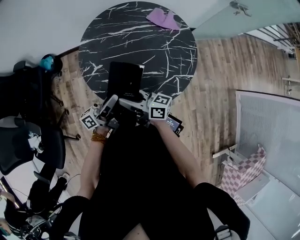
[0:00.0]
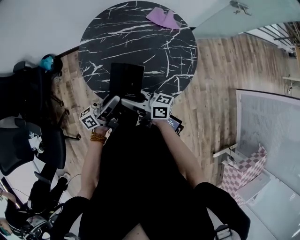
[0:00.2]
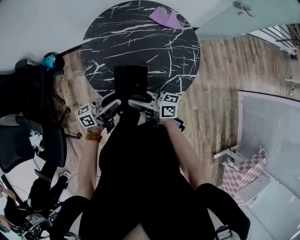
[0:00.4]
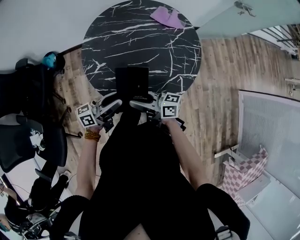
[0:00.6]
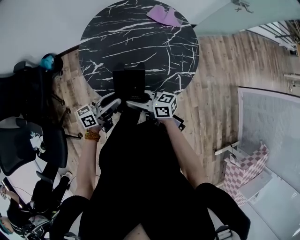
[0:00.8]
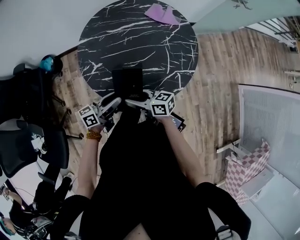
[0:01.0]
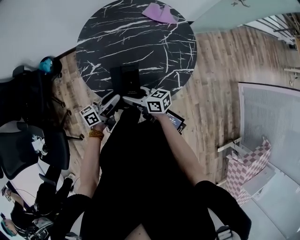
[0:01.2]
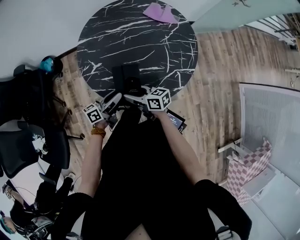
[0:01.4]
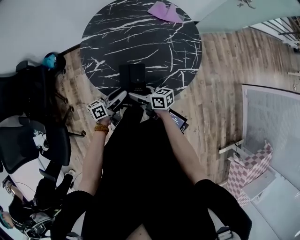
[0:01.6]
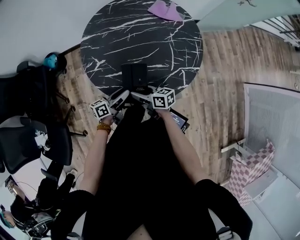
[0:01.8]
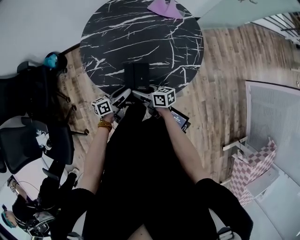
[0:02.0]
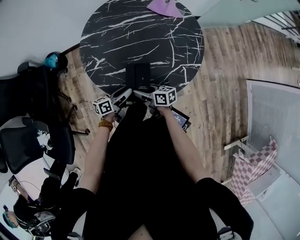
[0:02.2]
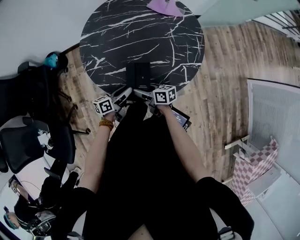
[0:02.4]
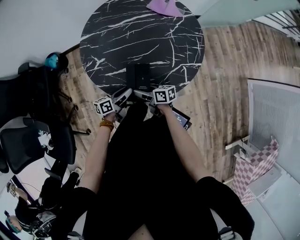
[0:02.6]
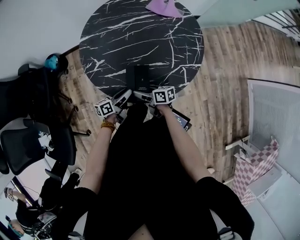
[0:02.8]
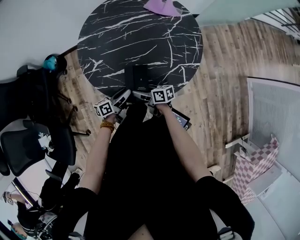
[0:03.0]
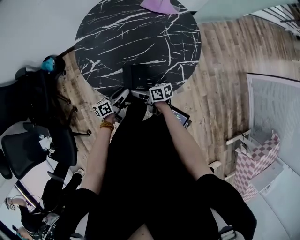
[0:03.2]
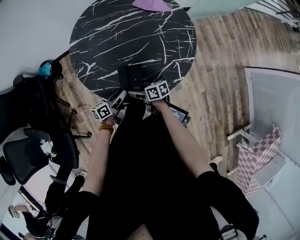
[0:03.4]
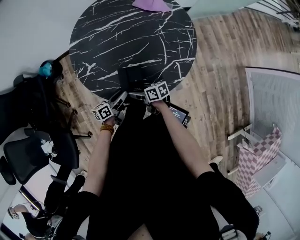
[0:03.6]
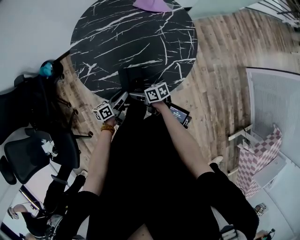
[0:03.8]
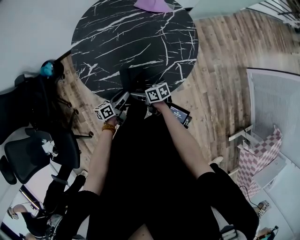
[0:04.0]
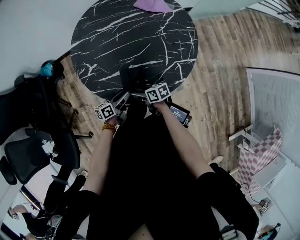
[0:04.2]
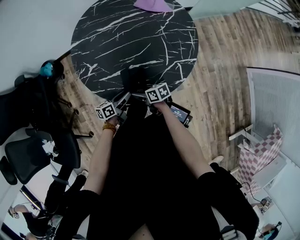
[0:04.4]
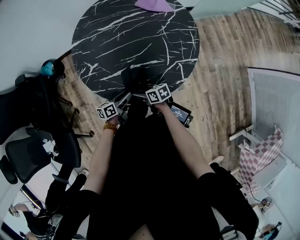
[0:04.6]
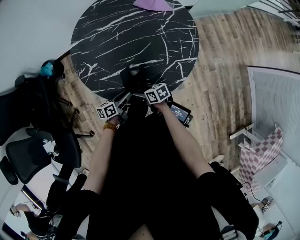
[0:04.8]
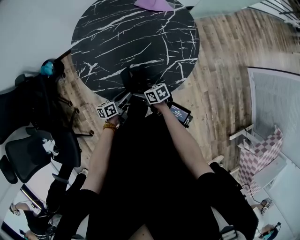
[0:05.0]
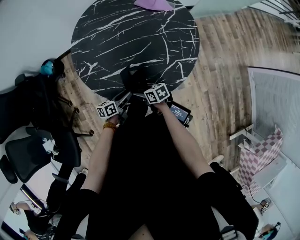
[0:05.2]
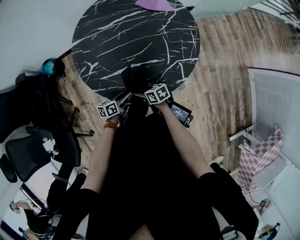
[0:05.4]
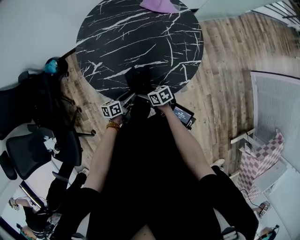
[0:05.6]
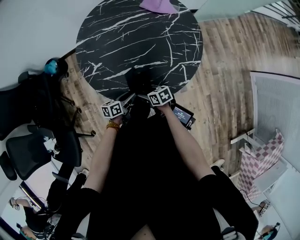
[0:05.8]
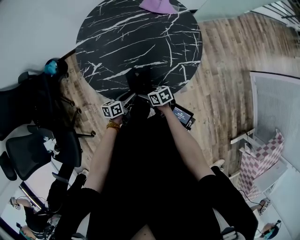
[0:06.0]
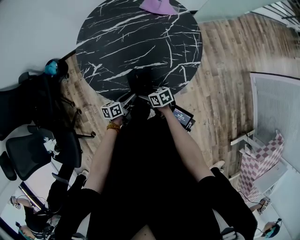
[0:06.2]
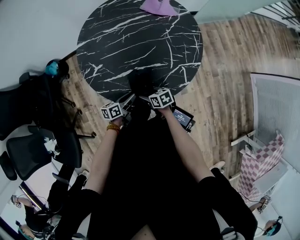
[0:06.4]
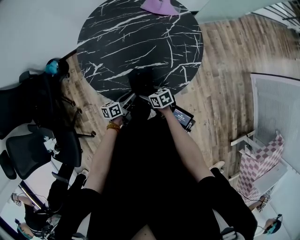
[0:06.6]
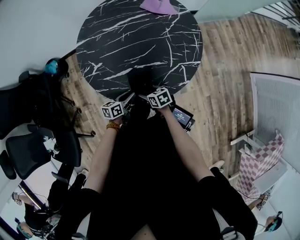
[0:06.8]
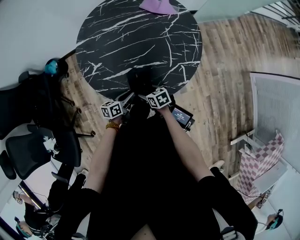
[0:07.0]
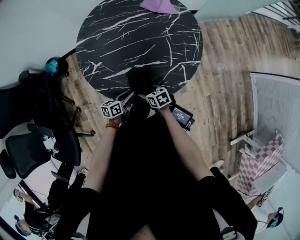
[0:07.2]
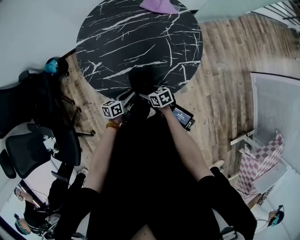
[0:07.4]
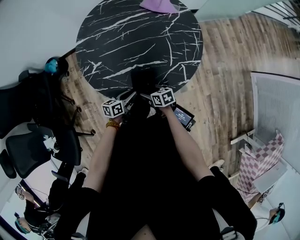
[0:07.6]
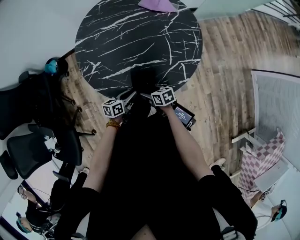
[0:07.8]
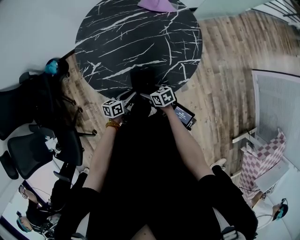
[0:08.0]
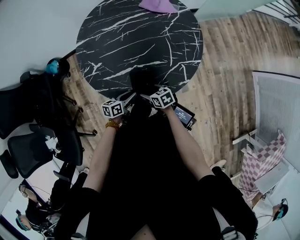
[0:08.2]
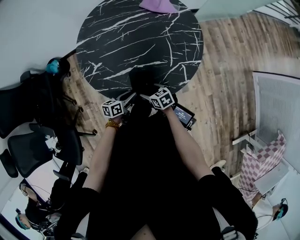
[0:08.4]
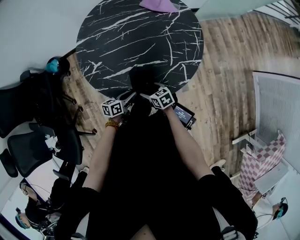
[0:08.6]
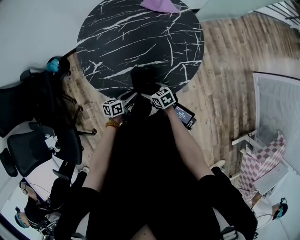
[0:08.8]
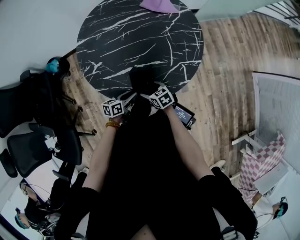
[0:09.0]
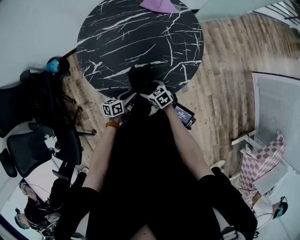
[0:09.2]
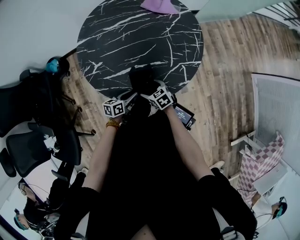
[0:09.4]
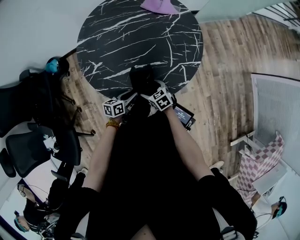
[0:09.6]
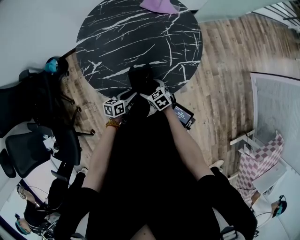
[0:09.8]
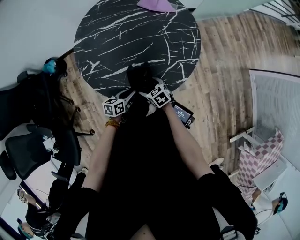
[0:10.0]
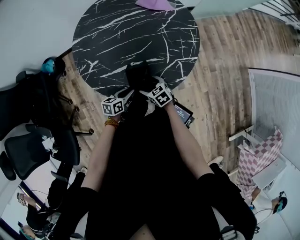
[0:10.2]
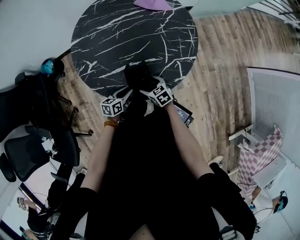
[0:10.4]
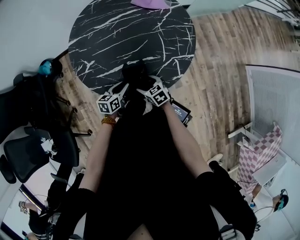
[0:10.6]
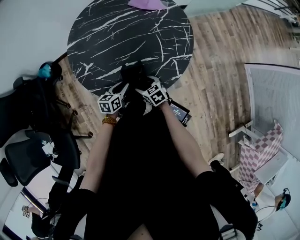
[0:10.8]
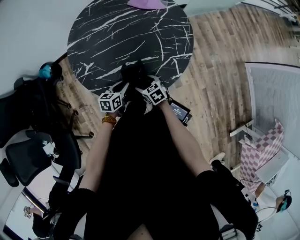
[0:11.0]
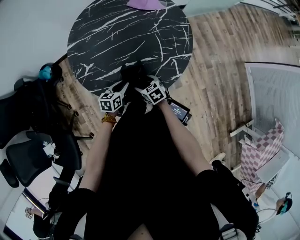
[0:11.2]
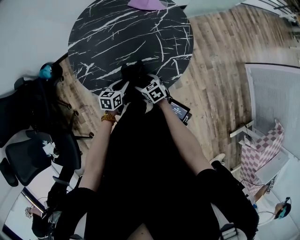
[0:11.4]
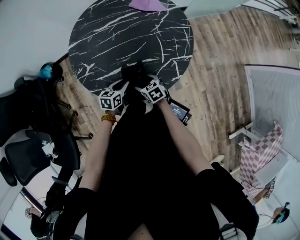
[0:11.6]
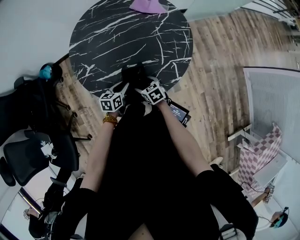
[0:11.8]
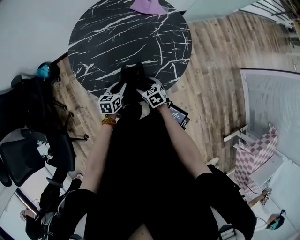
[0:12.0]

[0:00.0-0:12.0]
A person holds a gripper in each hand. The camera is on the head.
0:00.0 to 0:01.6: The grippers both shift downward by about 15 cm. The left gripper changes its angle by roughly 30 degrees.
0:01.6 to 0:03.0: Both grippers move downward, roughly 5 cm.
0:03.0 to 0:04.4: There are only small adjustments of the grippers.
0:04.4 to 0:06.0: The grippers move only a little.
0:06.0 to 0:09.0: The grippers stay close to where they were, moving slightly.
0:09.0 to 0:10.4: The grippers stay close to where they were, moving slightly.
0:10.4 to 0:12.0: The left gripper ends up some 5 cm from where it was.

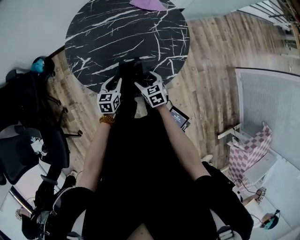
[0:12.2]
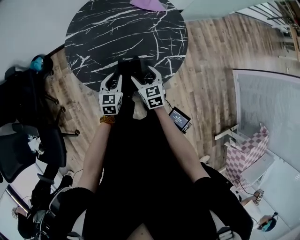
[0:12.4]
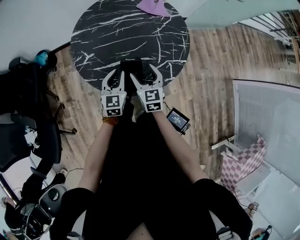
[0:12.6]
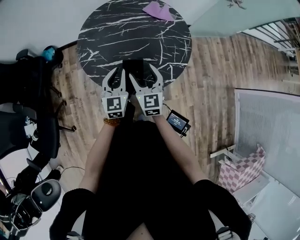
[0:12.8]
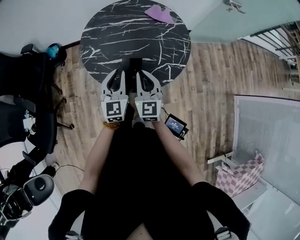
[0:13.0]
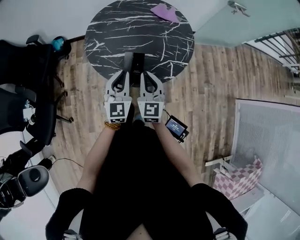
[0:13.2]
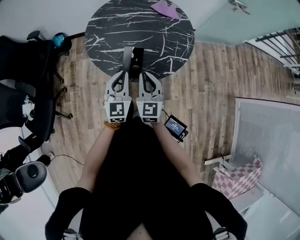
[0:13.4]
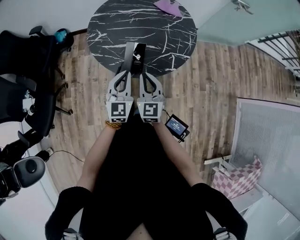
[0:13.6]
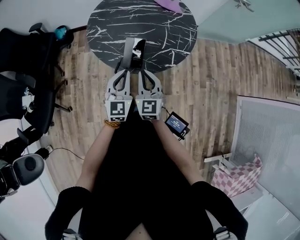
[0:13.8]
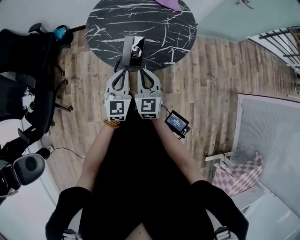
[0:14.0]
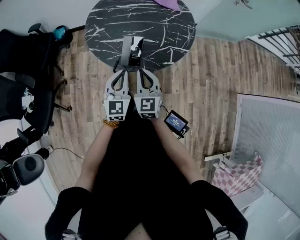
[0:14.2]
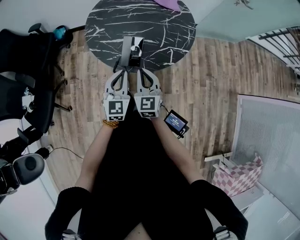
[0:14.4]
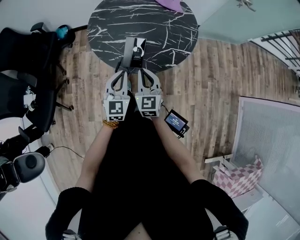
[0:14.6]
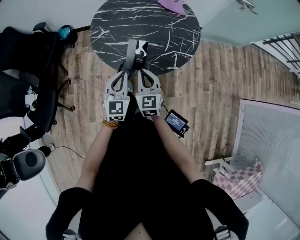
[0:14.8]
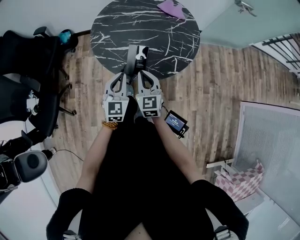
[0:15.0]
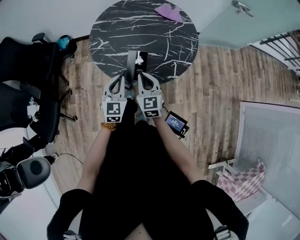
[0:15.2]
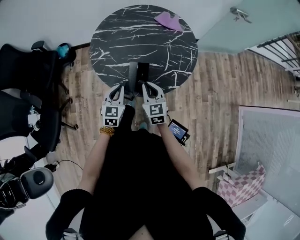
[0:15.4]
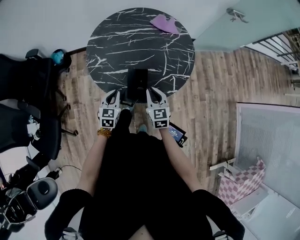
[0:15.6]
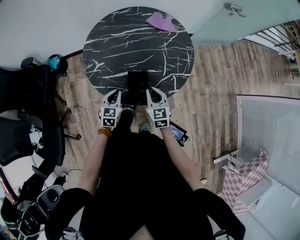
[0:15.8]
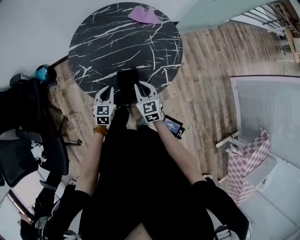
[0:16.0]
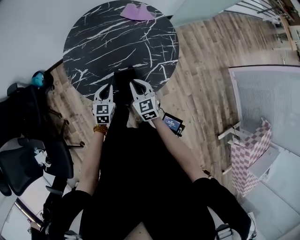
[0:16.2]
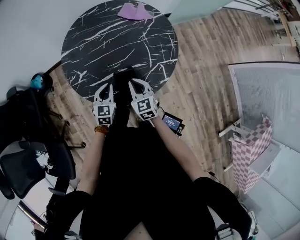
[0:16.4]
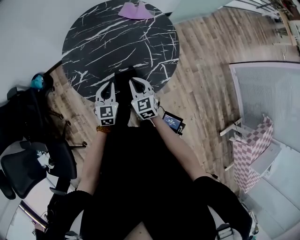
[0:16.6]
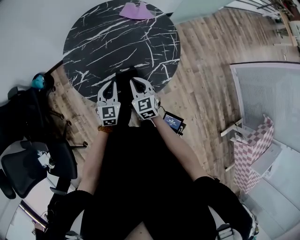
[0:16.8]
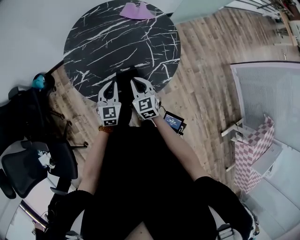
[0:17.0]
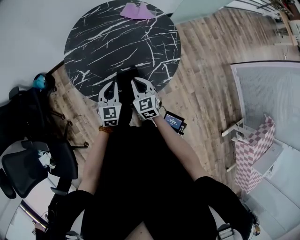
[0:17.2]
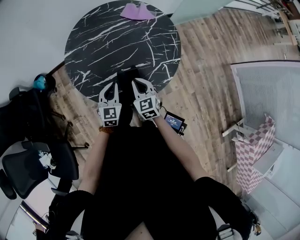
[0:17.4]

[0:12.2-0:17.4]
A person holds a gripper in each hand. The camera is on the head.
0:12.2 to 0:14.0: The two grippers go roughly 25 cm upward and backward. The right gripper tips its fingers upward by some 30 degrees, and closes up, while the left gripper rotates about 40 degrees, and closes.
0:14.0 to 0:15.6: The right gripper shifts some 10 cm forward and downward. The left gripper travels forward, downward and to the left by roughly 20 cm, and turns by roughly 20 degrees.
0:15.6 to 0:17.4: The left gripper shifts some 10 cm forward; the right gripper shifts about 5 cm forward.

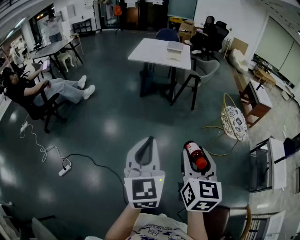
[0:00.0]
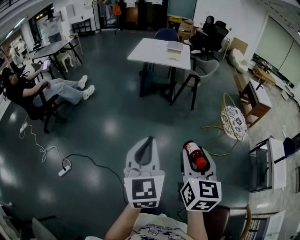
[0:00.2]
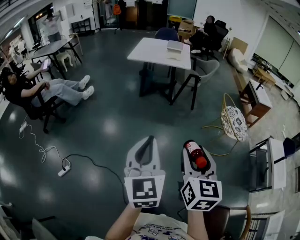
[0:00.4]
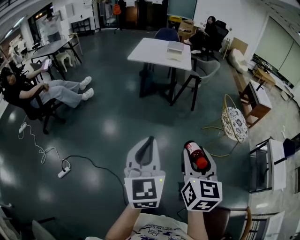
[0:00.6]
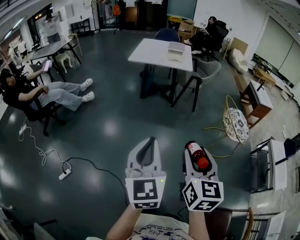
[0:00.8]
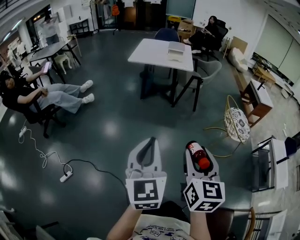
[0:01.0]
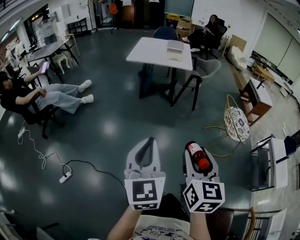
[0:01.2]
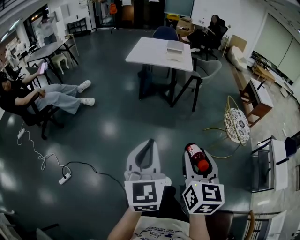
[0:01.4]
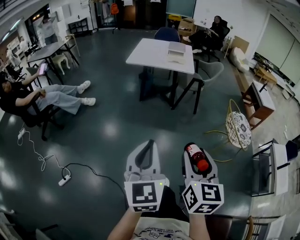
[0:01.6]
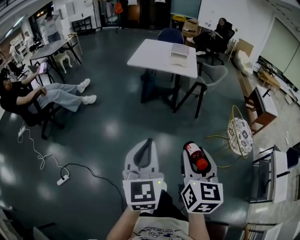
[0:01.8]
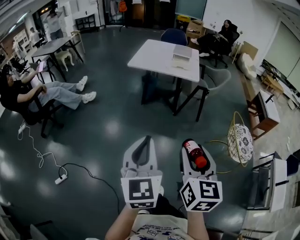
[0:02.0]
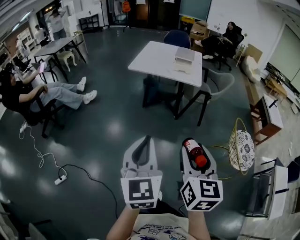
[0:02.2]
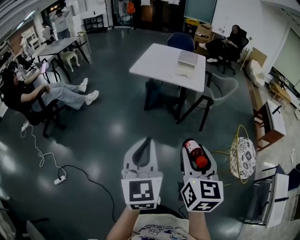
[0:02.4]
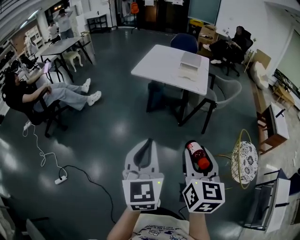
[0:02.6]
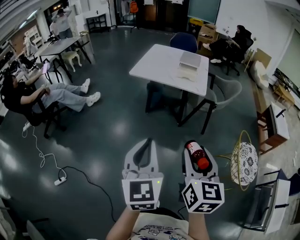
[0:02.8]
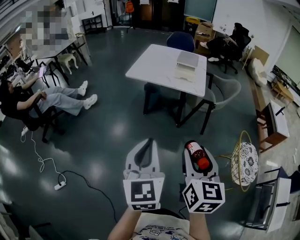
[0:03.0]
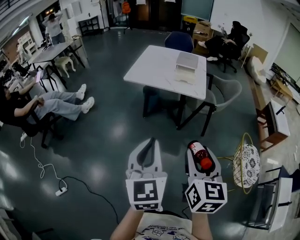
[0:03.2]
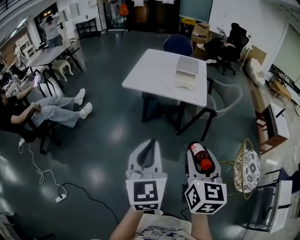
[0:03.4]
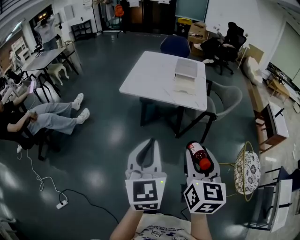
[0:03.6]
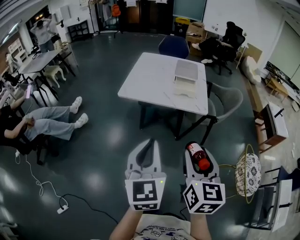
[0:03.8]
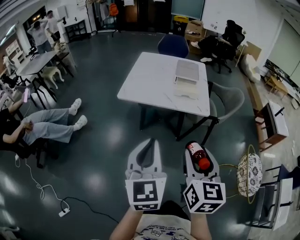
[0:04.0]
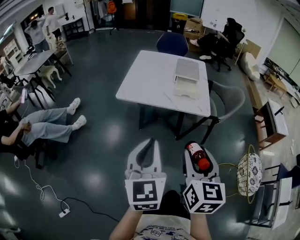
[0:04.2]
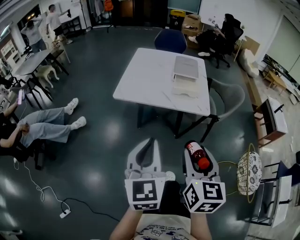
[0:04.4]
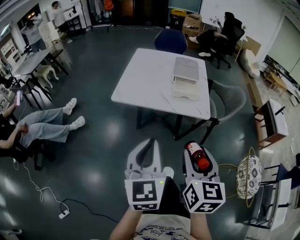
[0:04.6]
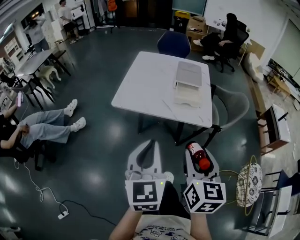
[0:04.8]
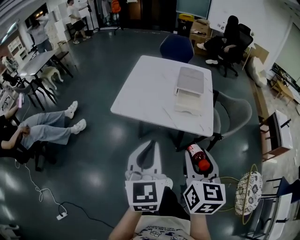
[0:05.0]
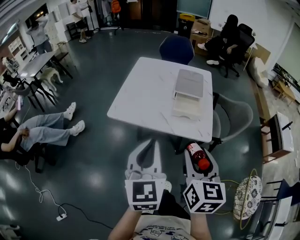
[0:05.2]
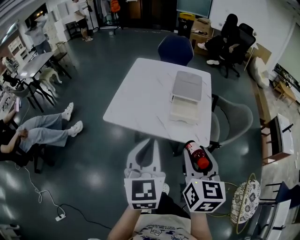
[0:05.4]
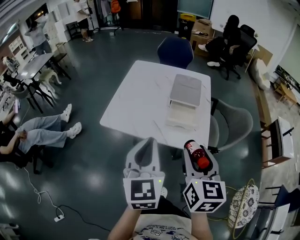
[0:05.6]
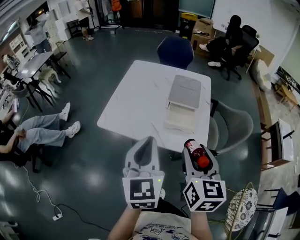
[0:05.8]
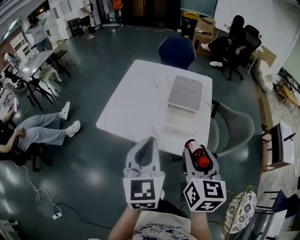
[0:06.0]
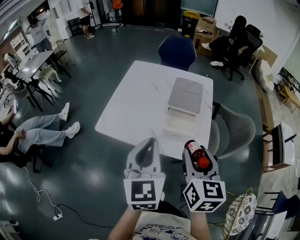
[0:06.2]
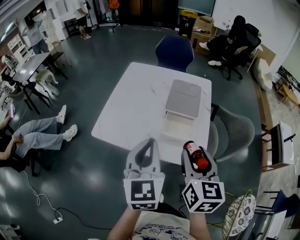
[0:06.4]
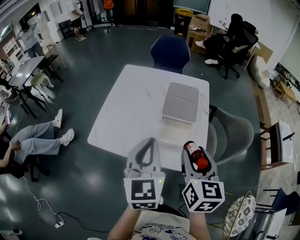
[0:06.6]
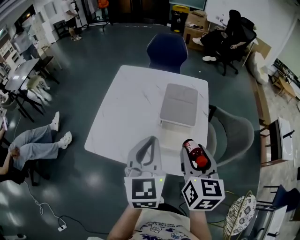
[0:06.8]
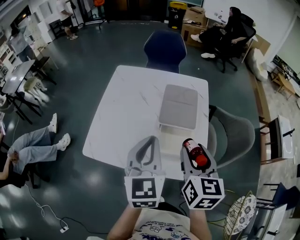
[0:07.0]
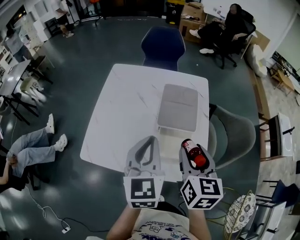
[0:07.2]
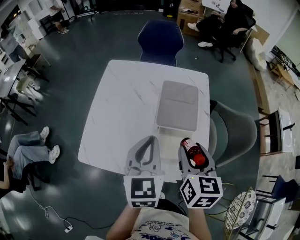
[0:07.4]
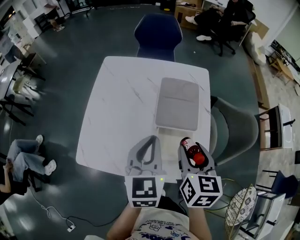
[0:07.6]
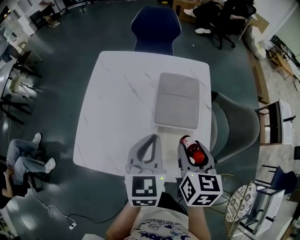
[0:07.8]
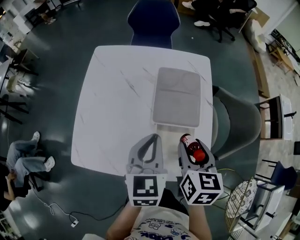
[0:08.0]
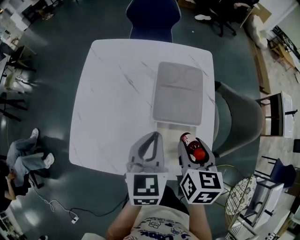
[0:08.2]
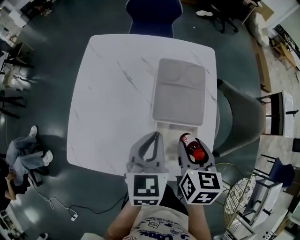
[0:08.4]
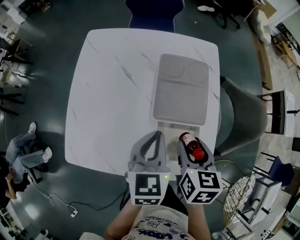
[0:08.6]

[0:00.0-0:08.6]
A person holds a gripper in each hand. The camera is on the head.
0:00.0 to 0:01.4: The two grippers go approximately 10 cm forward.
0:01.4 to 0:02.8: The two grippers go approximately 30 cm forward.
0:02.8 to 0:04.4: Both grippers move forward, approximately 30 cm.
0:04.4 to 0:05.8: The two grippers go roughly 25 cm forward.
0:05.8 to 0:07.2: The two grippers go about 20 cm forward.
0:07.2 to 0:08.6: Both grippers travel together downward and forward, approximately 15 cm. The left gripper changes its angle by about 20 degrees.
